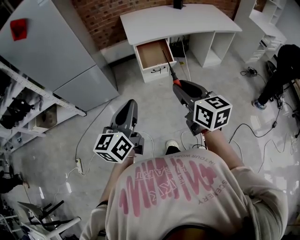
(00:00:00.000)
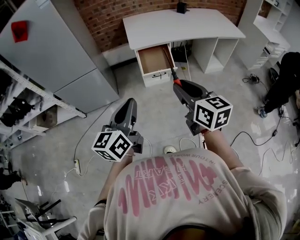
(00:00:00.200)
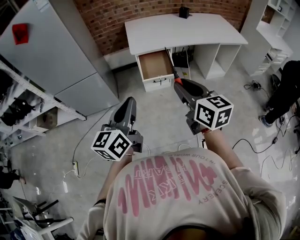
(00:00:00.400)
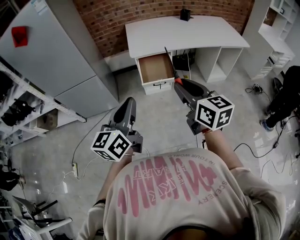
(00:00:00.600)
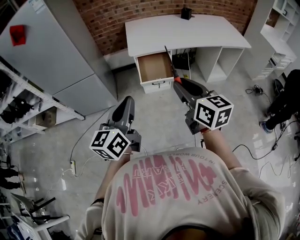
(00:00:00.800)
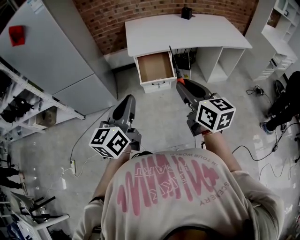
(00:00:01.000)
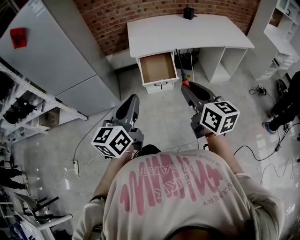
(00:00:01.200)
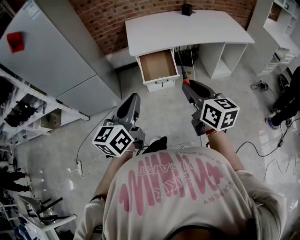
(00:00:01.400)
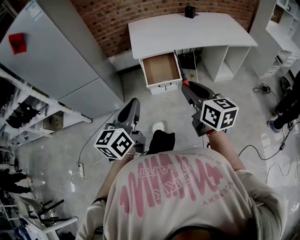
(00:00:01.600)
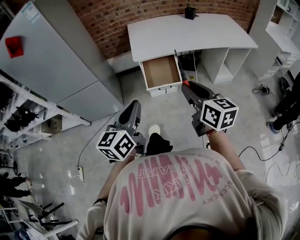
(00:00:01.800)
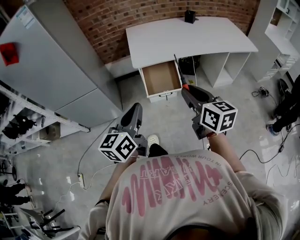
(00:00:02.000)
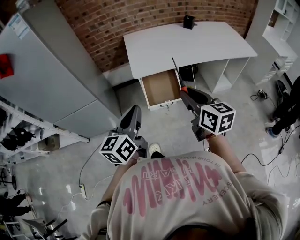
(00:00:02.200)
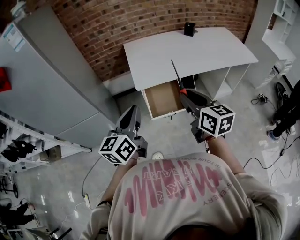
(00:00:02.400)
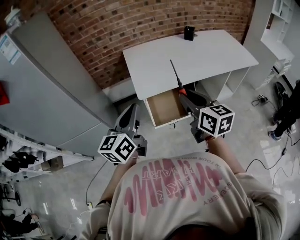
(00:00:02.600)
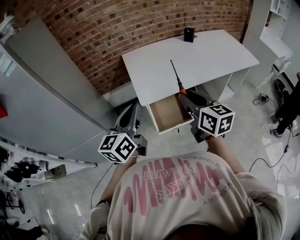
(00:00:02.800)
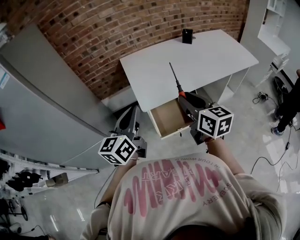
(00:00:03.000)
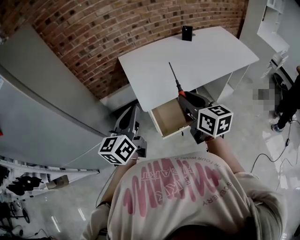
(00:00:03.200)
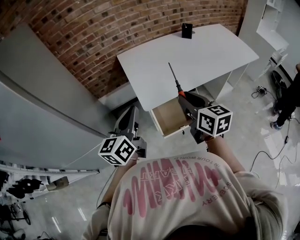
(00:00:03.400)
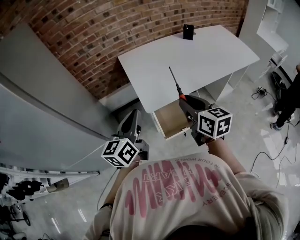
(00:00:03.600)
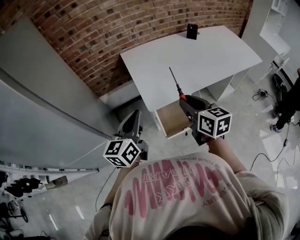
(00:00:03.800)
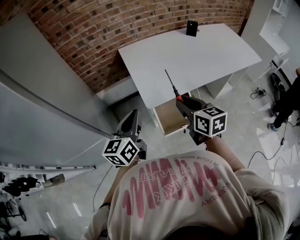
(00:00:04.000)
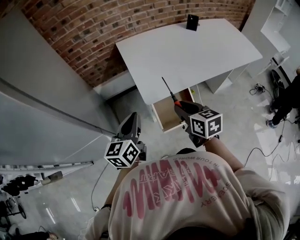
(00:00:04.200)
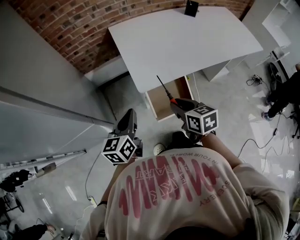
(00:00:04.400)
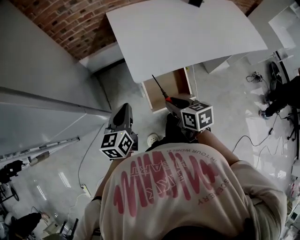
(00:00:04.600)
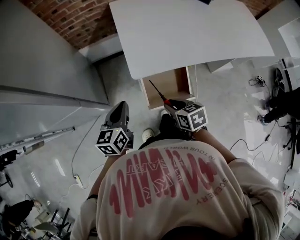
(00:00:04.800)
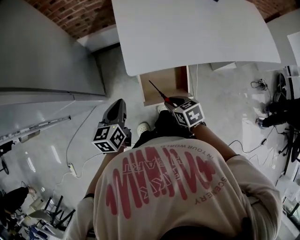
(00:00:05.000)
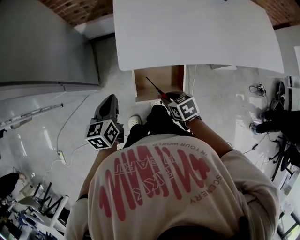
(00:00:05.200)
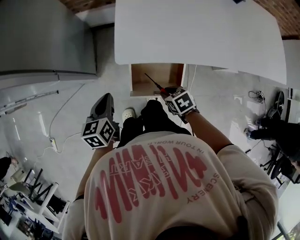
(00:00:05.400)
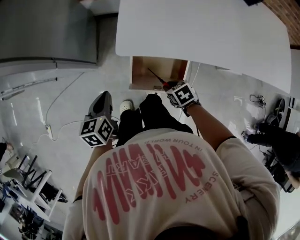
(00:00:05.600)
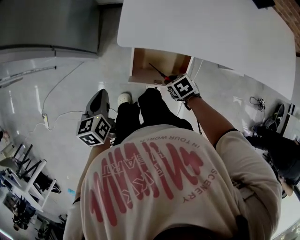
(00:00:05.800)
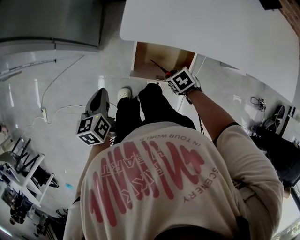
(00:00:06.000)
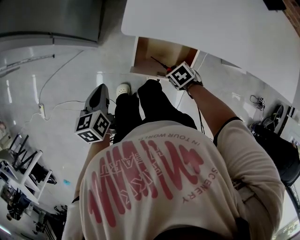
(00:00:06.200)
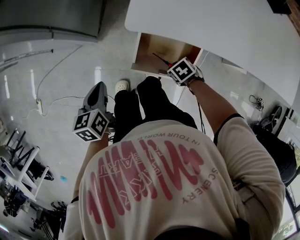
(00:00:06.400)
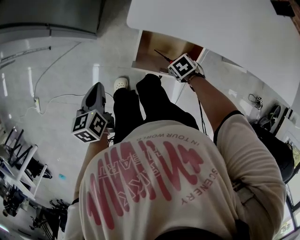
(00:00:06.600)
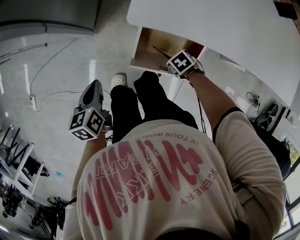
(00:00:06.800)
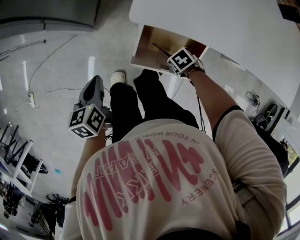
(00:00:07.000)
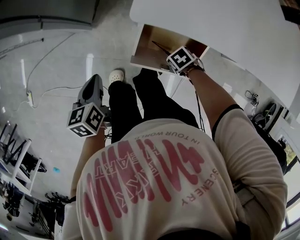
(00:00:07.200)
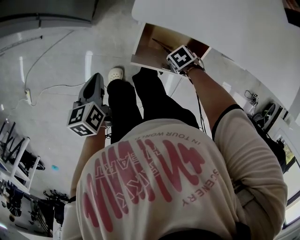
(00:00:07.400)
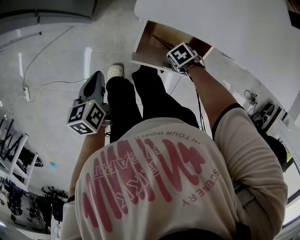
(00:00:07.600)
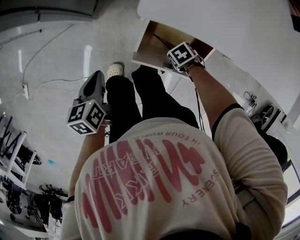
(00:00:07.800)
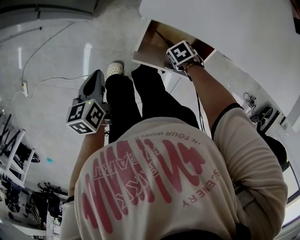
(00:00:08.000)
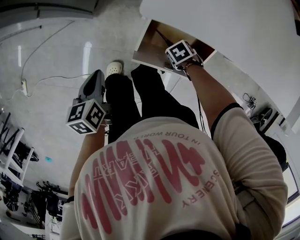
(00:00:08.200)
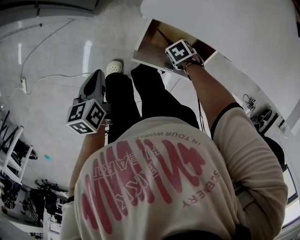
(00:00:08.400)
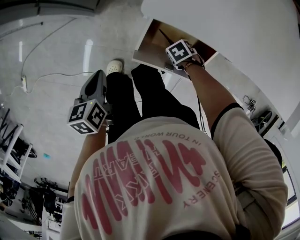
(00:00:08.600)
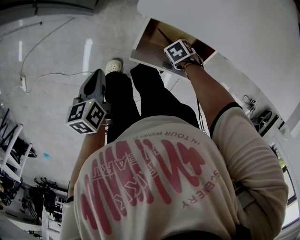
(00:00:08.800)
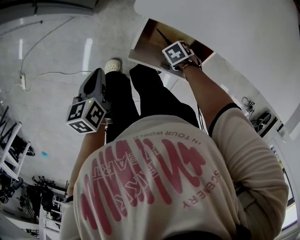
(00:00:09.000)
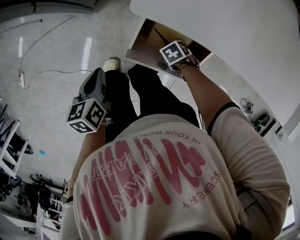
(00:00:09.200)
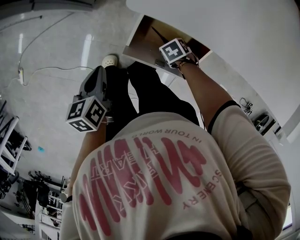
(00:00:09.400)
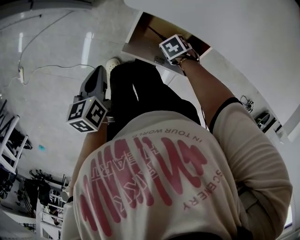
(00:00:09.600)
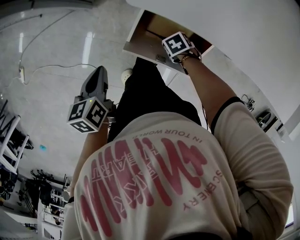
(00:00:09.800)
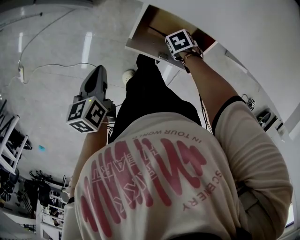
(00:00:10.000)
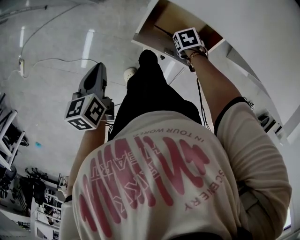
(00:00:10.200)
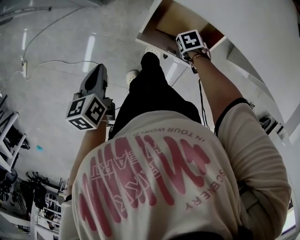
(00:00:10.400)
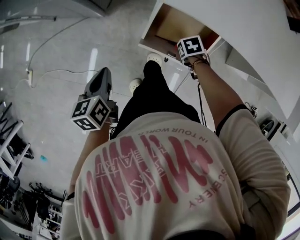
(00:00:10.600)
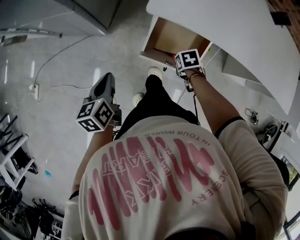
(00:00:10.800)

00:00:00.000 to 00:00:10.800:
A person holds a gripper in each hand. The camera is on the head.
00:00:00.000 to 00:00:01.600: The grippers both shift forward and to the right by roughly 15 cm.
00:00:01.600 to 00:00:03.000: Both grippers travel together forward, some 35 cm.
00:00:03.000 to 00:00:04.600: The grippers both shift downward by some 20 cm. The left gripper swivels about 20 degrees. The right gripper swivels about 30 degrees.
00:00:04.600 to 00:00:06.200: The right gripper moves downward, approximately 30 cm, and points its fingers approximately 40 degrees further downward. The left gripper goes roughly 15 cm downward, and turns by some 40 degrees.
00:00:06.200 to 00:00:07.800: Both grippers move downward, approximately 10 cm.
00:00:07.800 to 00:00:09.200: The grippers make only small movements.
00:00:09.200 to 00:00:10.800: Both grippers travel together upward, roughly 15 cm. The right gripper swivels some 30 degrees.

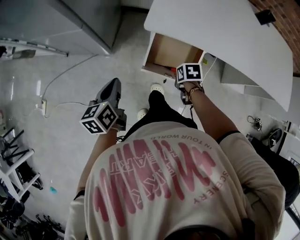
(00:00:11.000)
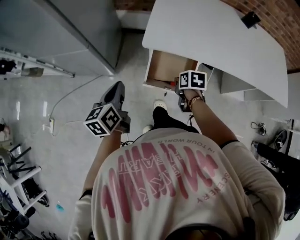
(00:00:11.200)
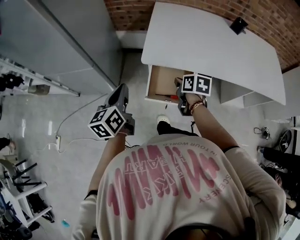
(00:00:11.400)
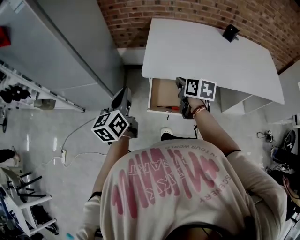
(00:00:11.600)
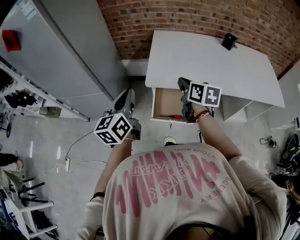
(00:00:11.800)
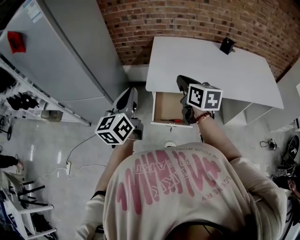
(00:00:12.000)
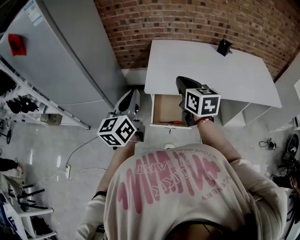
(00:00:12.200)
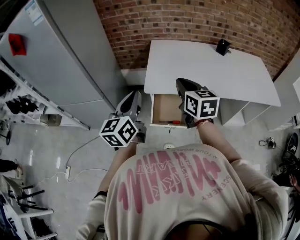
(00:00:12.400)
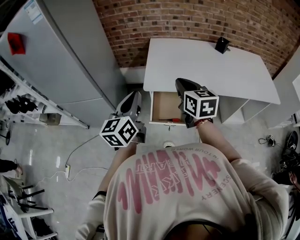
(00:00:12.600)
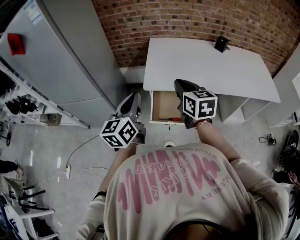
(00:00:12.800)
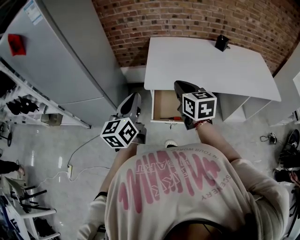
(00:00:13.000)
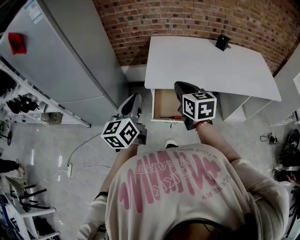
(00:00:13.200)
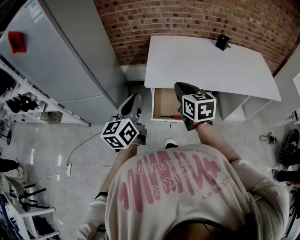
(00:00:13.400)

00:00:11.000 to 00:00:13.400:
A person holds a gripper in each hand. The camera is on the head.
00:00:11.000 to 00:00:12.200: The two grippers go roughly 35 cm upward. The left gripper tips its fingers upward by roughly 30 degrees; the right gripper points its fingers about 60 degrees further upward.
00:00:12.200 to 00:00:13.400: The left gripper changes place by roughly 5 cm. The right gripper moves approximately 5 cm.

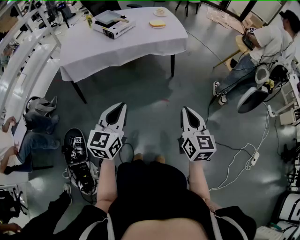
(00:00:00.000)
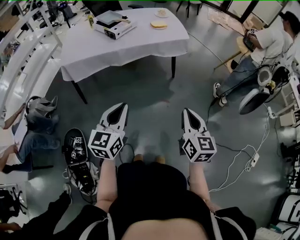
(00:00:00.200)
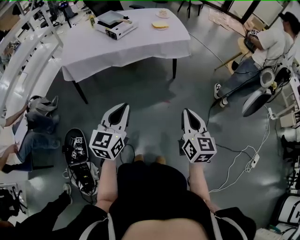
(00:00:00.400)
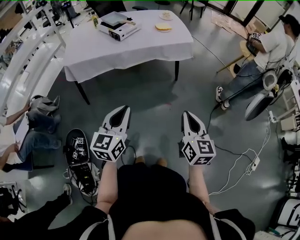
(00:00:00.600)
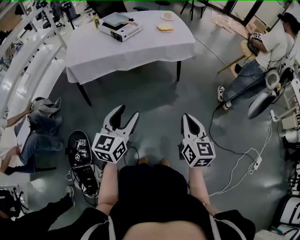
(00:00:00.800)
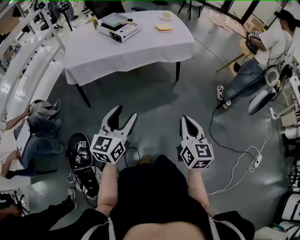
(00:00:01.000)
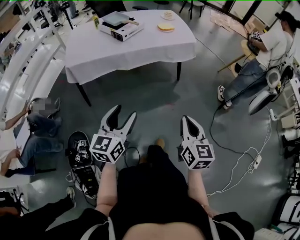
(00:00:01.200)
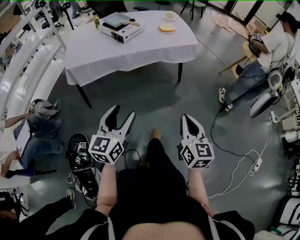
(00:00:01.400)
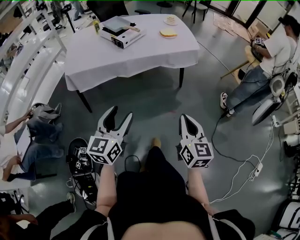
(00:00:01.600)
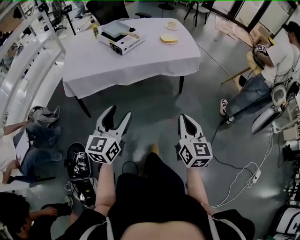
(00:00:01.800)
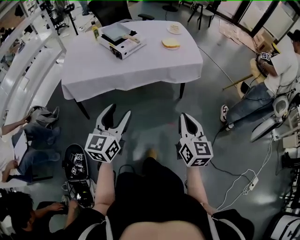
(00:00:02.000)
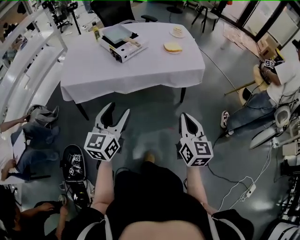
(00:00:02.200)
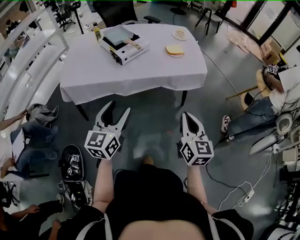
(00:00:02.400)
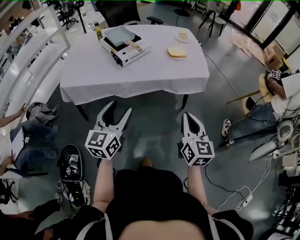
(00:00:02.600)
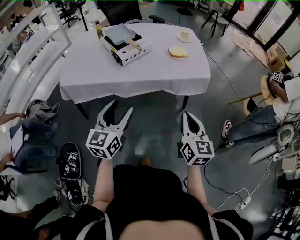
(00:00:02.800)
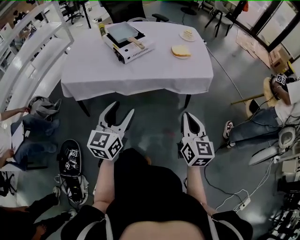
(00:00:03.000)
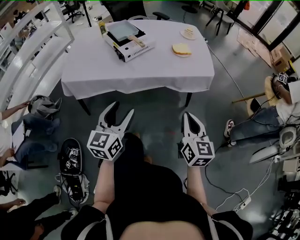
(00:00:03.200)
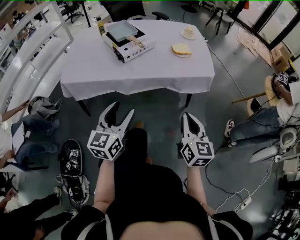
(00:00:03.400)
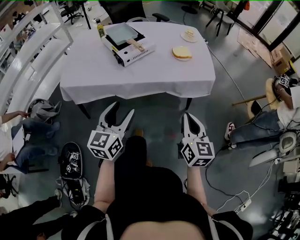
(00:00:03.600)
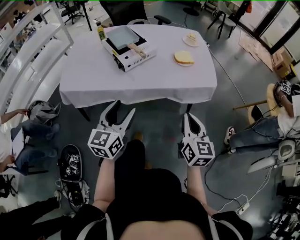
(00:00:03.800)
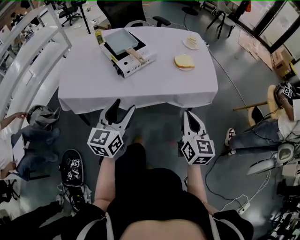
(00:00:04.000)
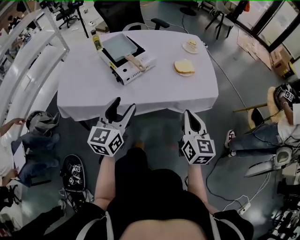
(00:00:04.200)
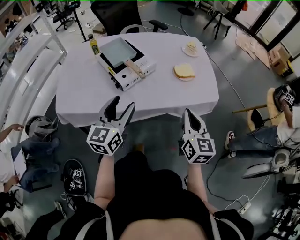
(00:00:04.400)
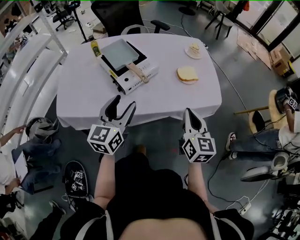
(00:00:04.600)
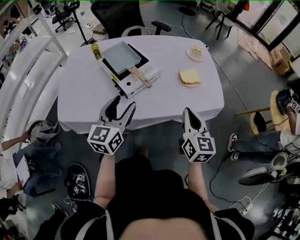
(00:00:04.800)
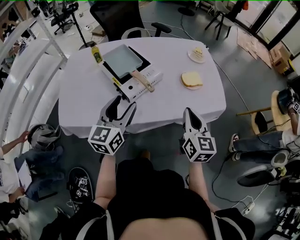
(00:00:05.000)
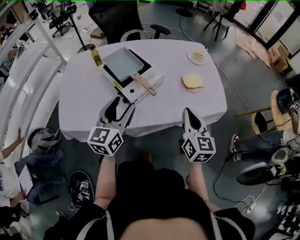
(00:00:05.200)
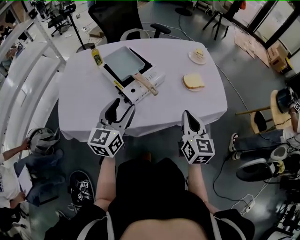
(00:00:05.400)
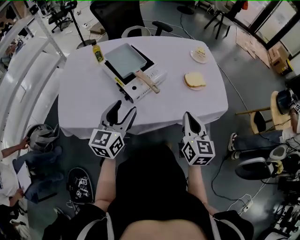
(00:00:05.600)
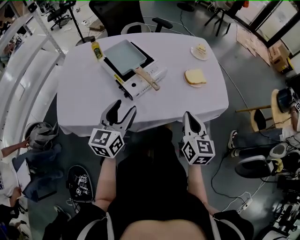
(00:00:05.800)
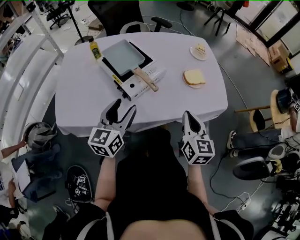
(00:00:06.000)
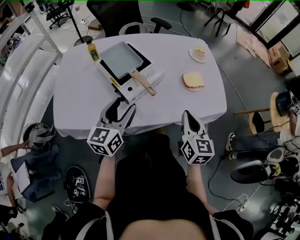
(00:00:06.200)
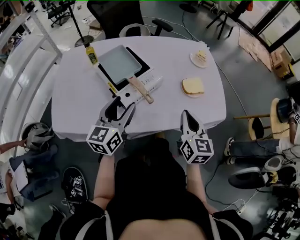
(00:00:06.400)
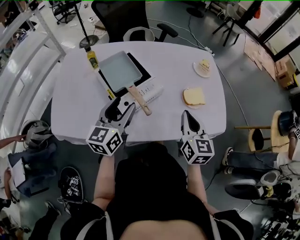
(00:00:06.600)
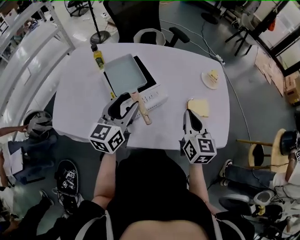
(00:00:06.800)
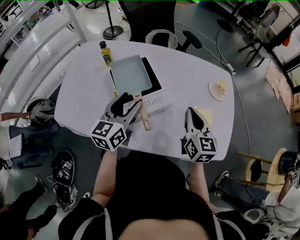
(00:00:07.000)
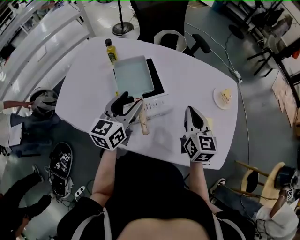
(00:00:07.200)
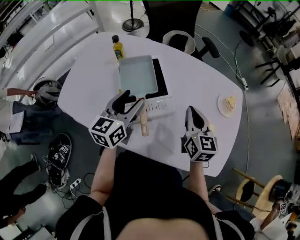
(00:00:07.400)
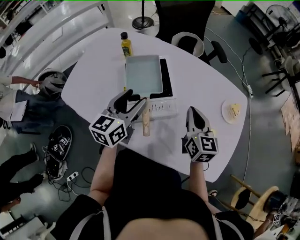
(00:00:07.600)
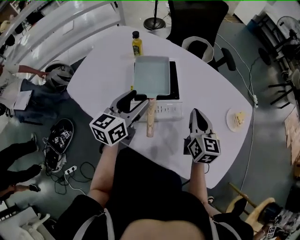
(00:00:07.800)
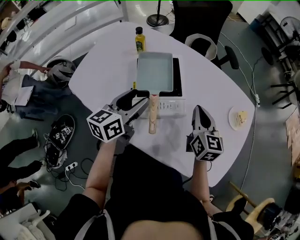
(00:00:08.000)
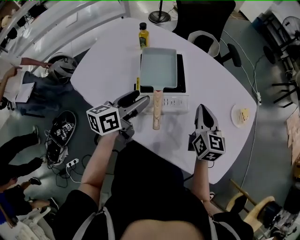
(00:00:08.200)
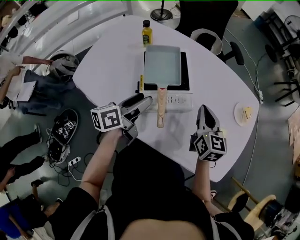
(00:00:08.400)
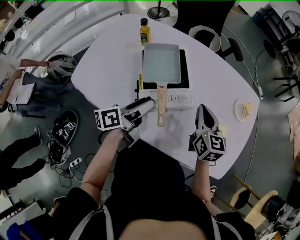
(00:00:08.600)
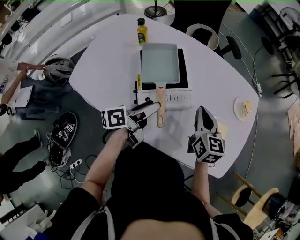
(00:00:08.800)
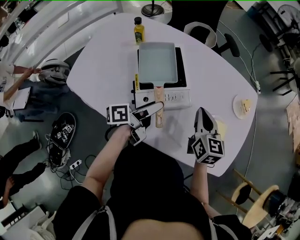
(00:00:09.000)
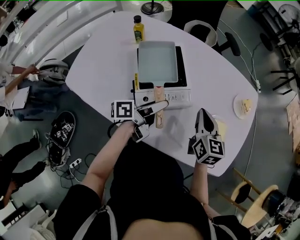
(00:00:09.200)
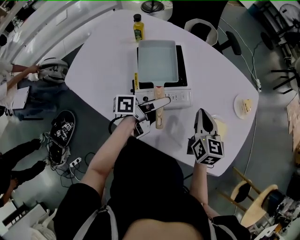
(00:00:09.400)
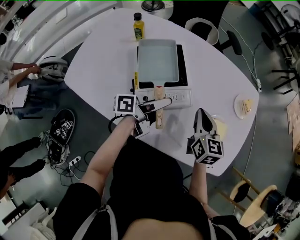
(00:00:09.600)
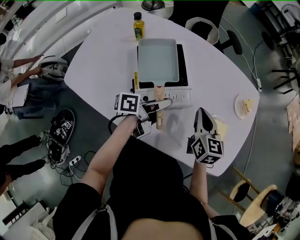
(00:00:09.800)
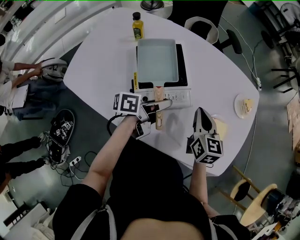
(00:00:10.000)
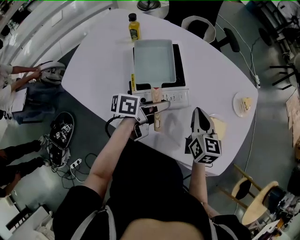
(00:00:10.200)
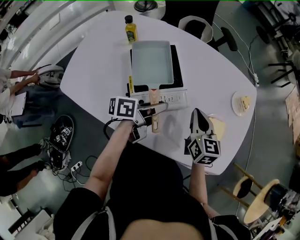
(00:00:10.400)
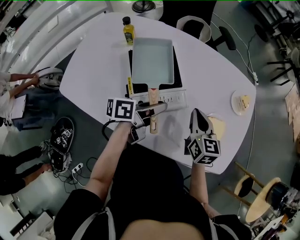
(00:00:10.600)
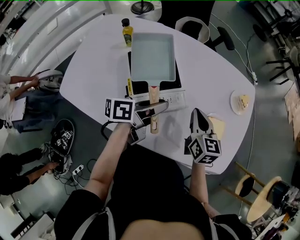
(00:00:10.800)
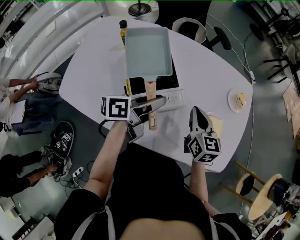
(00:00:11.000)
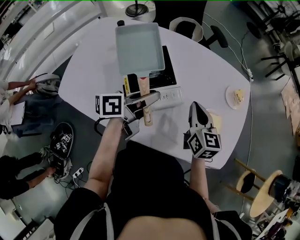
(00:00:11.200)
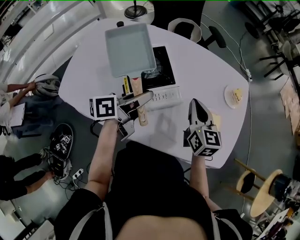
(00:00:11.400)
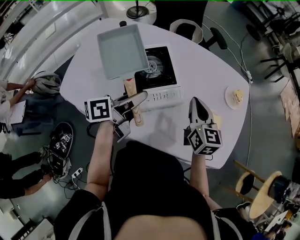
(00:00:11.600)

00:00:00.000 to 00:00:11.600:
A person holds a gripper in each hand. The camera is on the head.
00:00:00.000 to 00:00:01.400: The grippers both shift to the left by approximately 5 cm. The left gripper opens up.
00:00:01.400 to 00:00:02.800: Both grippers travel together forward, approximately 30 cm.
00:00:02.800 to 00:00:04.400: The grippers both shift forward by about 25 cm.
00:00:04.400 to 00:00:05.800: Both grippers move to the left and forward, about 10 cm.
00:00:05.800 to 00:00:07.200: The grippers both shift forward by about 25 cm. The right gripper rotates some 20 degrees.
00:00:07.200 to 00:00:08.800: The right gripper moves approximately 5 cm, while the left gripper moves downward, about 10 cm, and twists approximately 50 degrees counterclockwise, seen from behind.
00:00:08.800 to 00:00:10.200: The left gripper goes approximately 5 cm to the right, and closes up.
00:00:10.200 to 00:00:11.600: The left gripper heads upward and to the left, covering approximately 10 cm. Meanwhile the right gripper travels upward by roughly 5 cm.
